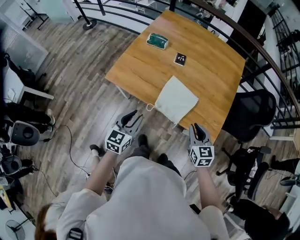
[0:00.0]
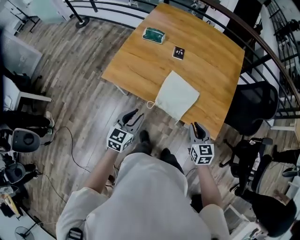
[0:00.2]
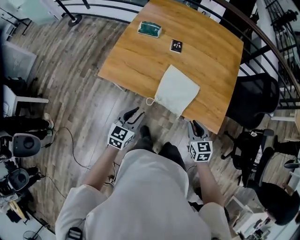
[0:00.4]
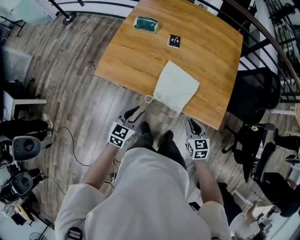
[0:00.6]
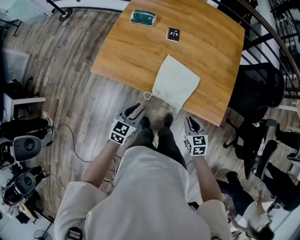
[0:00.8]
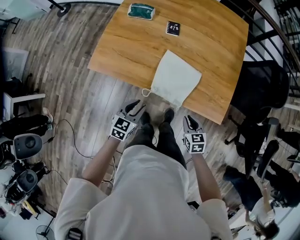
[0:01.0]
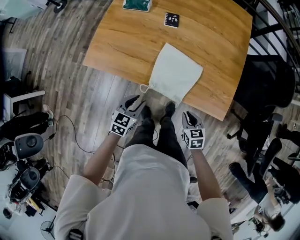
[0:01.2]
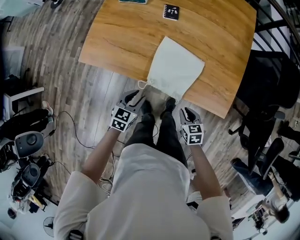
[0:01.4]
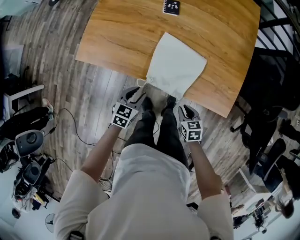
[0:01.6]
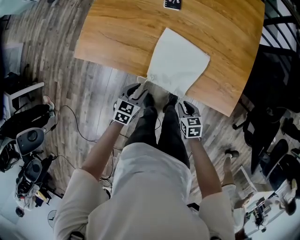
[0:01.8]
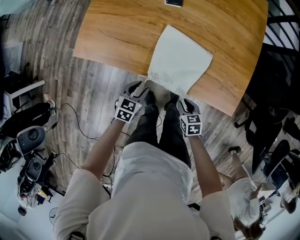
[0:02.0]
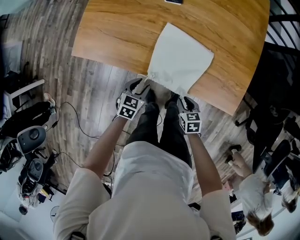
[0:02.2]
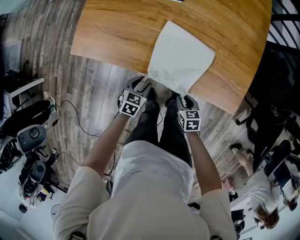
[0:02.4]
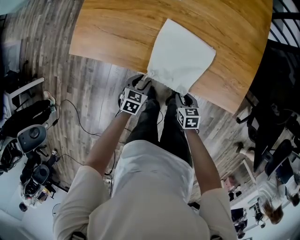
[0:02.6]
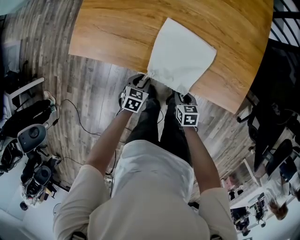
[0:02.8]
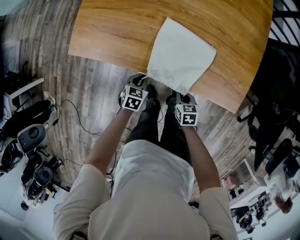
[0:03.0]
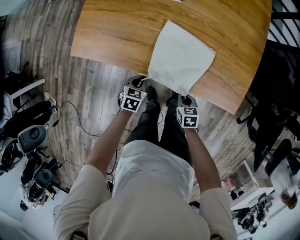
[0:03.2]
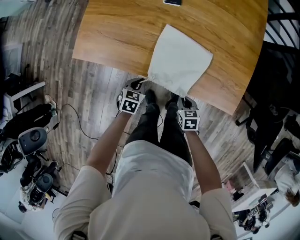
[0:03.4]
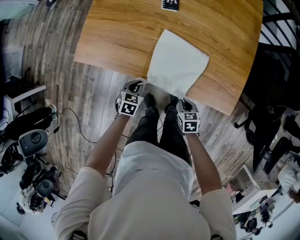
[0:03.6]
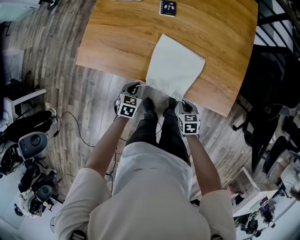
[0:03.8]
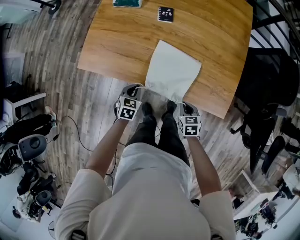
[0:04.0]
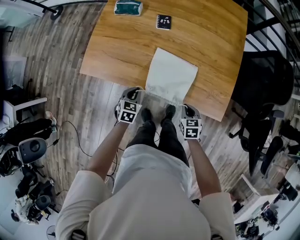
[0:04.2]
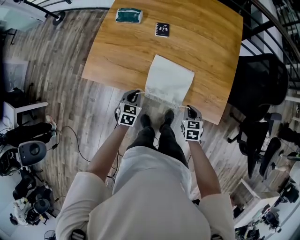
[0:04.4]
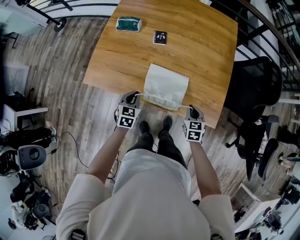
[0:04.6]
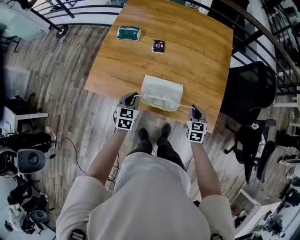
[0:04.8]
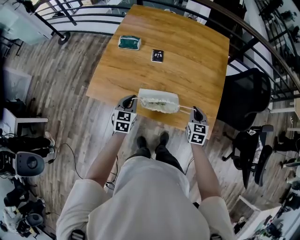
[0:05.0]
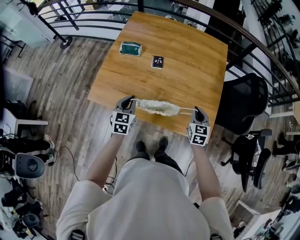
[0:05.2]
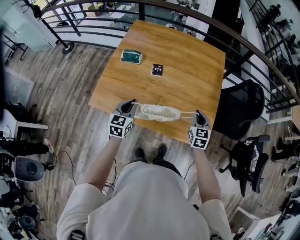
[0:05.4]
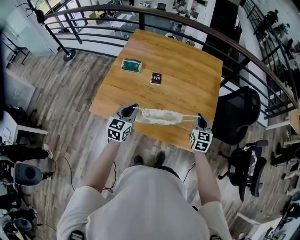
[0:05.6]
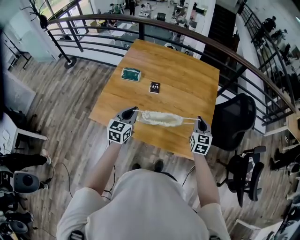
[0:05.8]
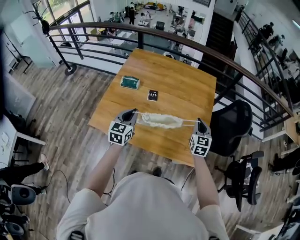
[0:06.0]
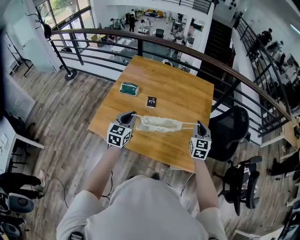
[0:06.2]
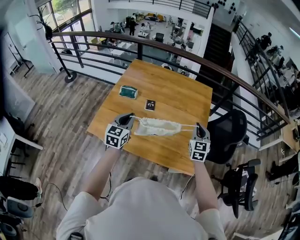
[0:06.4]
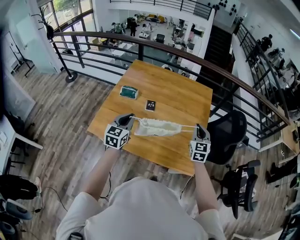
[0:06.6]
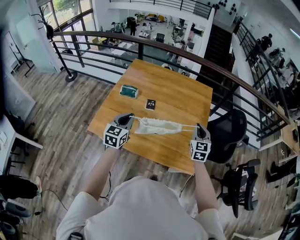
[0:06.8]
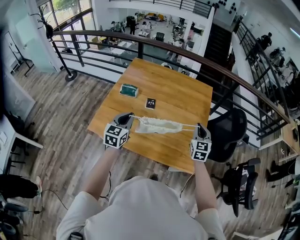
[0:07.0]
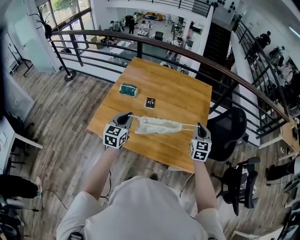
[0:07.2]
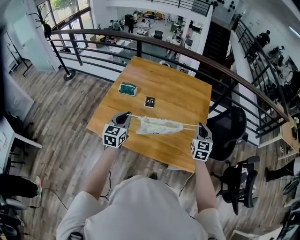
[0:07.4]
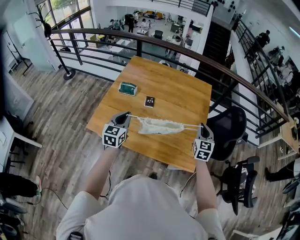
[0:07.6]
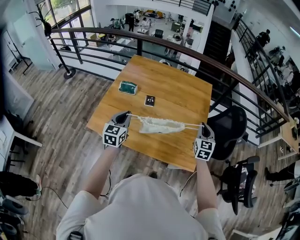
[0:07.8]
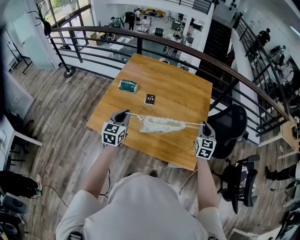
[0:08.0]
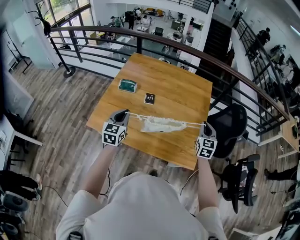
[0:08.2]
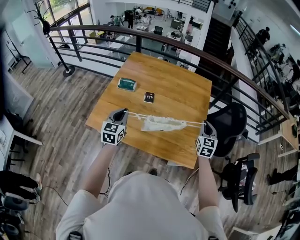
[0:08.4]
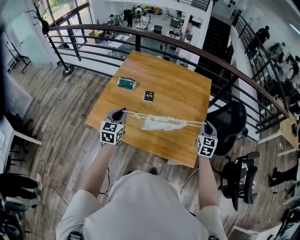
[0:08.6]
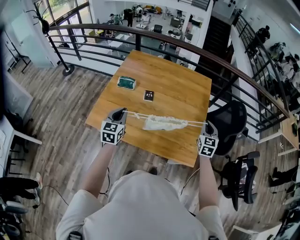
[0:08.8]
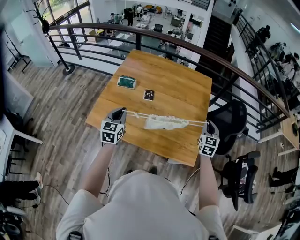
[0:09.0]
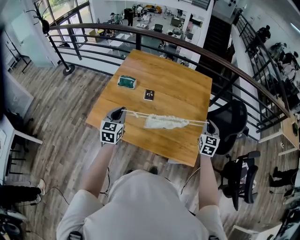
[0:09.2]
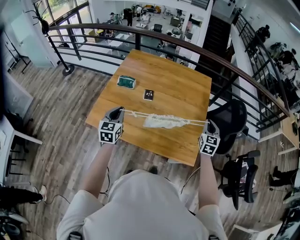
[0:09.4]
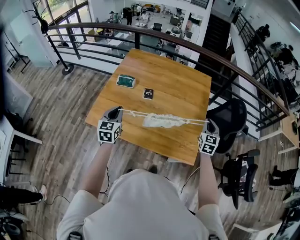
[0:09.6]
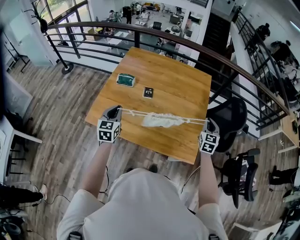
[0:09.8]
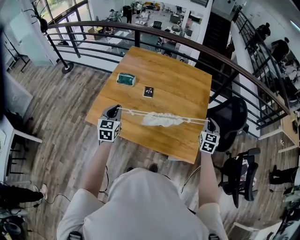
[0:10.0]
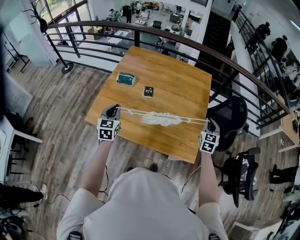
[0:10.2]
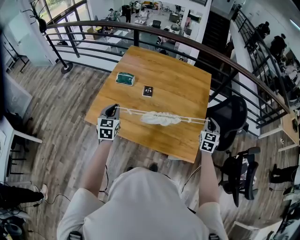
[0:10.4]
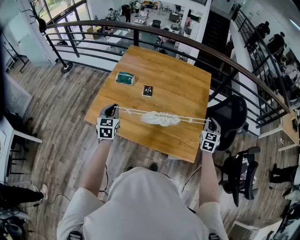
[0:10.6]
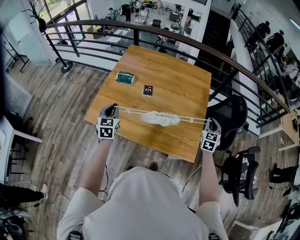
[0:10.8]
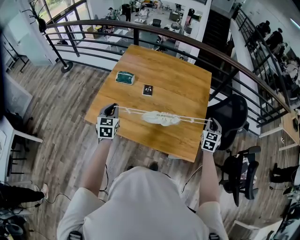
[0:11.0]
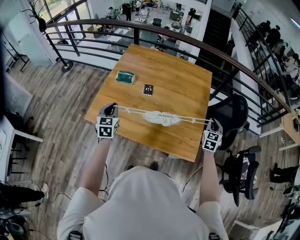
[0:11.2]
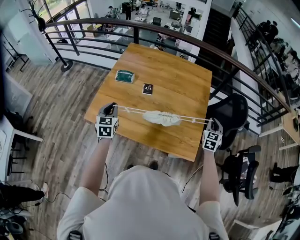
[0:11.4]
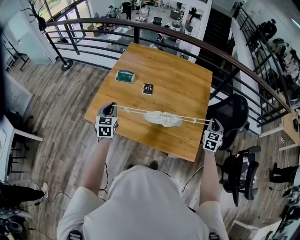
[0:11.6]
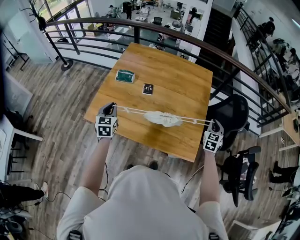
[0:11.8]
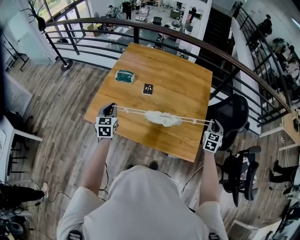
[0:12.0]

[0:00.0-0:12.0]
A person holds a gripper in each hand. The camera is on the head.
0:00.0 to 0:01.6: The two grippers go roughly 25 cm downward. The left gripper turns by roughly 30 degrees. Meanwhile the right gripper swivels approximately 30 degrees.
0:01.6 to 0:03.0: The two grippers go roughly 10 cm downward. The left gripper closes its fingers.
0:03.0 to 0:04.4: The right gripper heads upward and to the right, covering roughly 15 cm, while the left gripper is displaced upward by roughly 15 cm.
0:04.4 to 0:06.0: The left gripper moves upward, about 30 cm, and changes its angle by about 30 degrees. Meanwhile the right gripper heads upward and forward, covering roughly 30 cm, and tilts its fingers about 30 degrees upward.
0:06.0 to 0:07.6: The right gripper ends up approximately 5 cm from where it was.
0:07.6 to 0:09.0: The right gripper ends up about 5 cm from where it was.
0:09.0 to 0:10.4: The grippers stay close to where they were, moving slightly.
0:10.4 to 0:12.0: The right gripper changes place by some 5 cm.

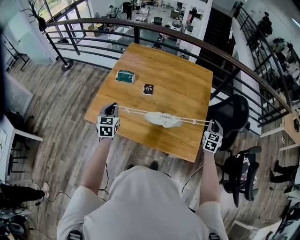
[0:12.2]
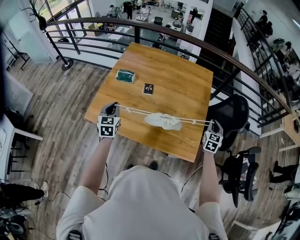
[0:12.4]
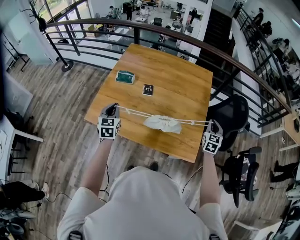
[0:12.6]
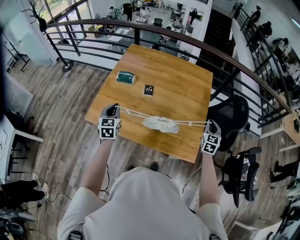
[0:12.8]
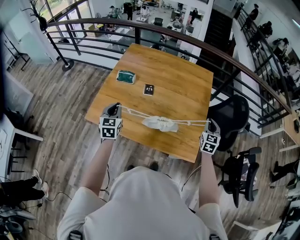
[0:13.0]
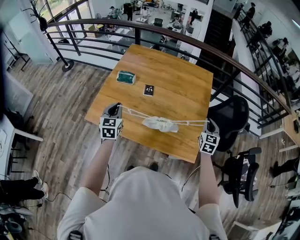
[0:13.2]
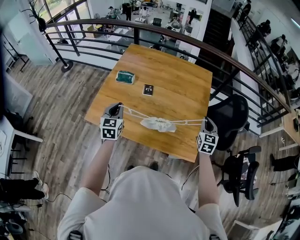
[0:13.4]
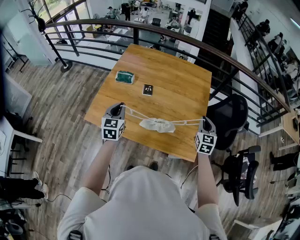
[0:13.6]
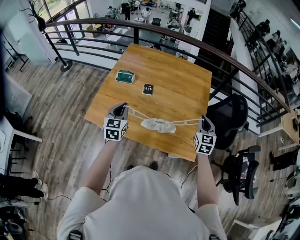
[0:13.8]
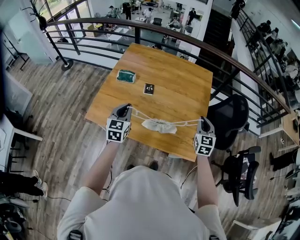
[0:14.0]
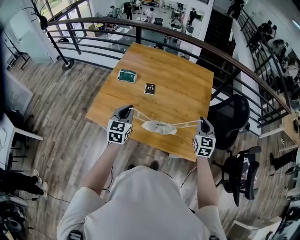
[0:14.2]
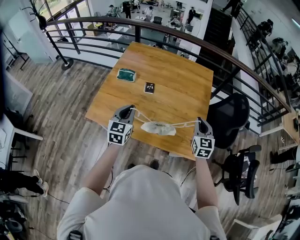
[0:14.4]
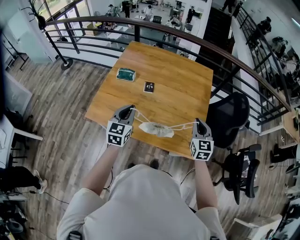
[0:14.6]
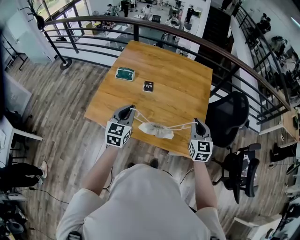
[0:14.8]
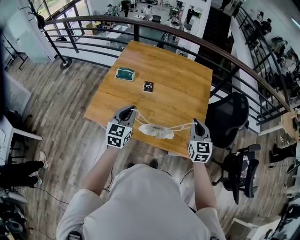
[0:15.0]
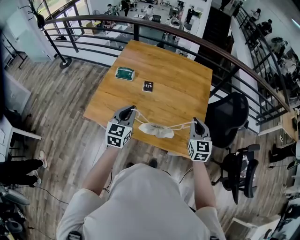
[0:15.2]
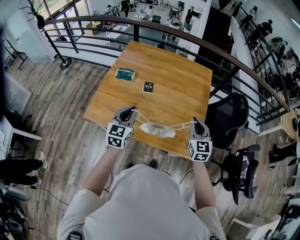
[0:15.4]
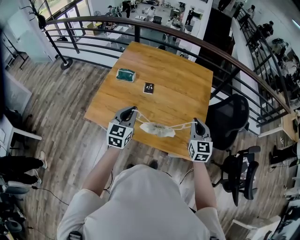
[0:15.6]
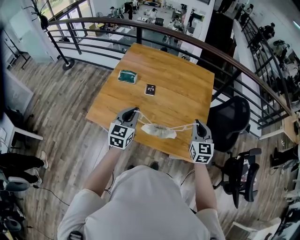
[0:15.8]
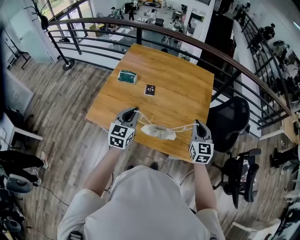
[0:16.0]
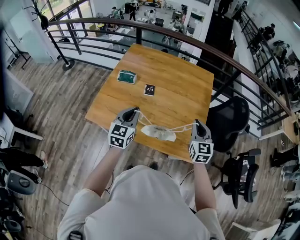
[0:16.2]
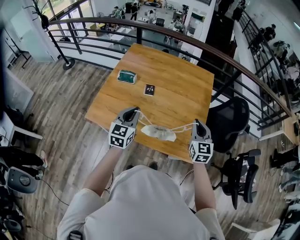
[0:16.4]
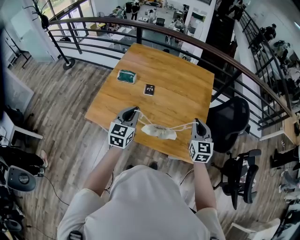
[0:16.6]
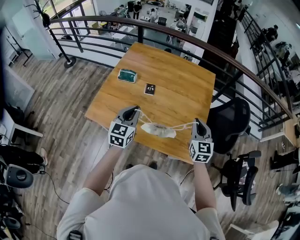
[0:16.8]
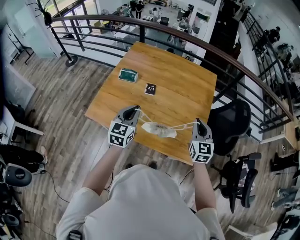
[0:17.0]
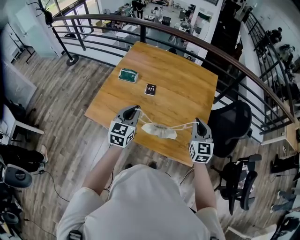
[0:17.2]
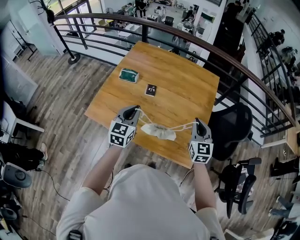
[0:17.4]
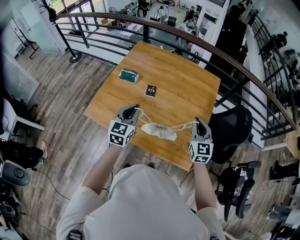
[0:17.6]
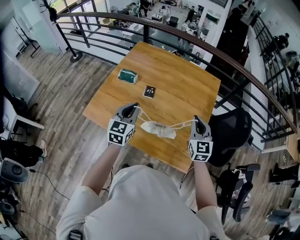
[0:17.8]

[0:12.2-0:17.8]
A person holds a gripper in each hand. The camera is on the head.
0:12.2 to 0:13.6: The left gripper moves some 5 cm. Meanwhile the right gripper is displaced to the left by about 10 cm.
0:13.6 to 0:15.0: The left gripper heads to the right, covering about 5 cm. Meanwhile the right gripper is displaced to the left and backward by some 10 cm.
0:15.0 to 0:16.4: The grippers move only a little.
0:16.4 to 0:17.8: Both grippers travel together forward, some 5 cm.

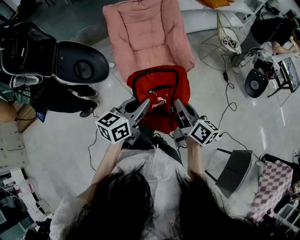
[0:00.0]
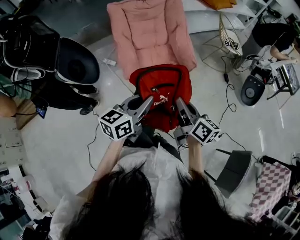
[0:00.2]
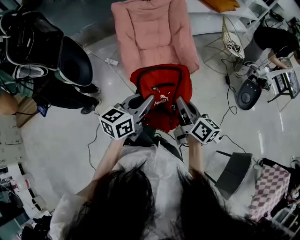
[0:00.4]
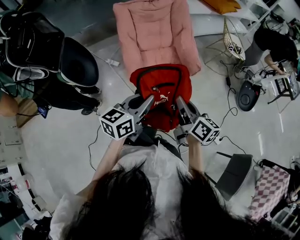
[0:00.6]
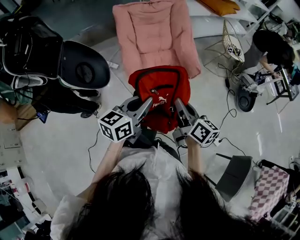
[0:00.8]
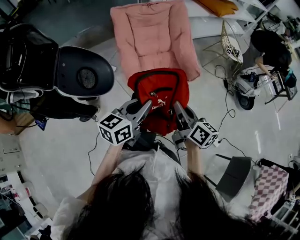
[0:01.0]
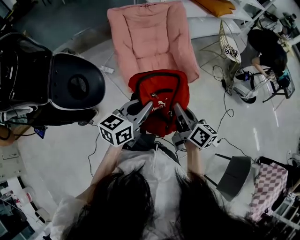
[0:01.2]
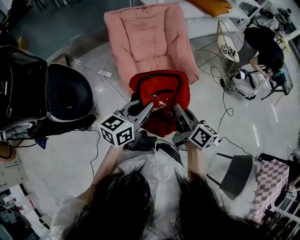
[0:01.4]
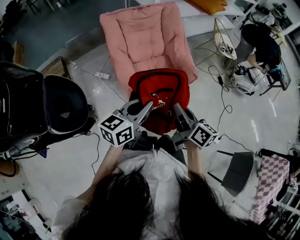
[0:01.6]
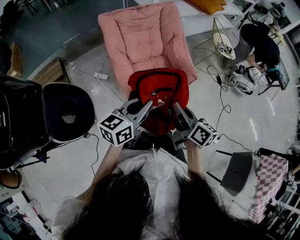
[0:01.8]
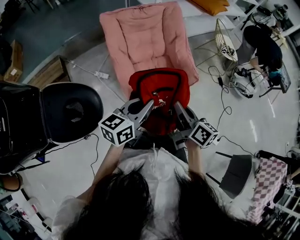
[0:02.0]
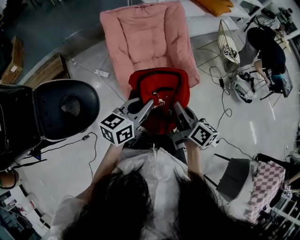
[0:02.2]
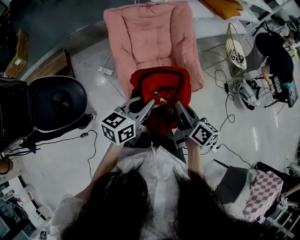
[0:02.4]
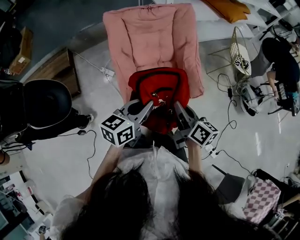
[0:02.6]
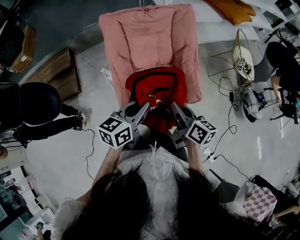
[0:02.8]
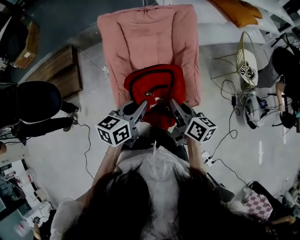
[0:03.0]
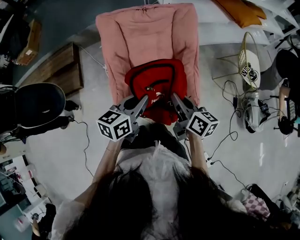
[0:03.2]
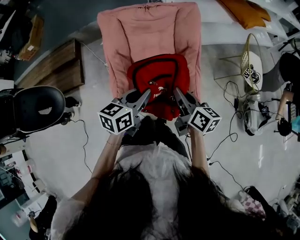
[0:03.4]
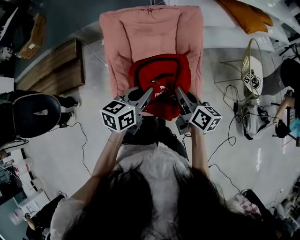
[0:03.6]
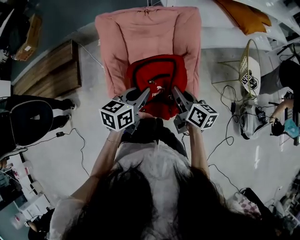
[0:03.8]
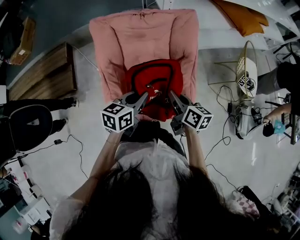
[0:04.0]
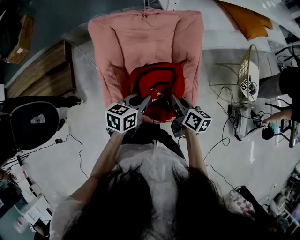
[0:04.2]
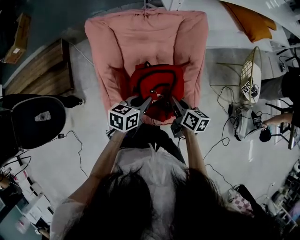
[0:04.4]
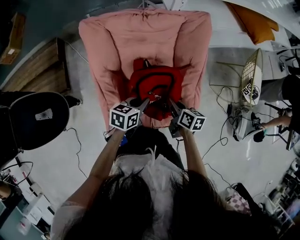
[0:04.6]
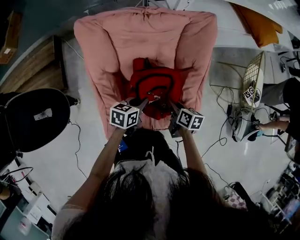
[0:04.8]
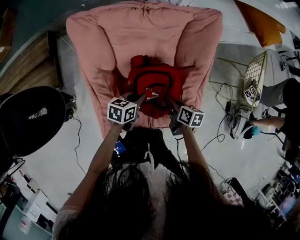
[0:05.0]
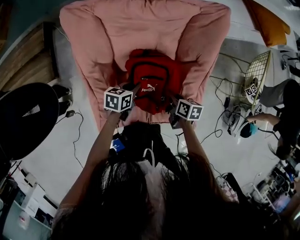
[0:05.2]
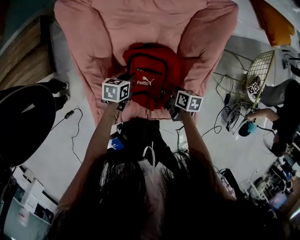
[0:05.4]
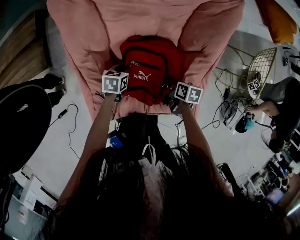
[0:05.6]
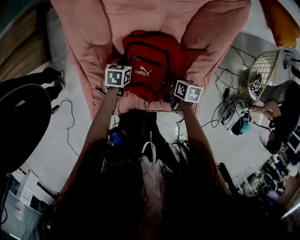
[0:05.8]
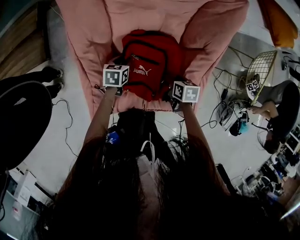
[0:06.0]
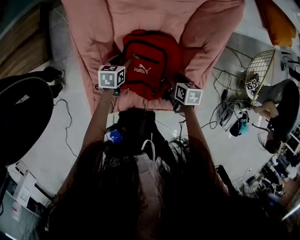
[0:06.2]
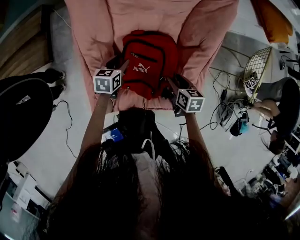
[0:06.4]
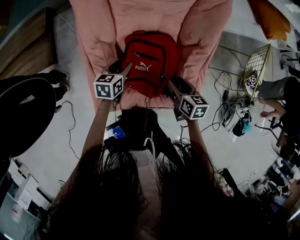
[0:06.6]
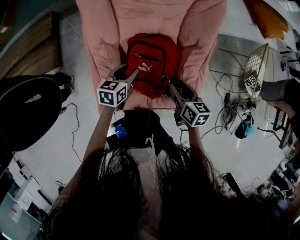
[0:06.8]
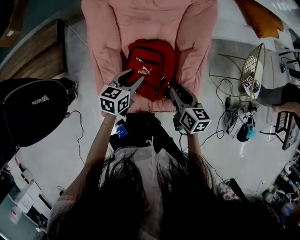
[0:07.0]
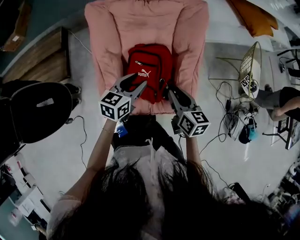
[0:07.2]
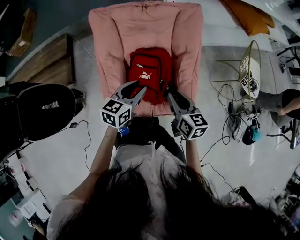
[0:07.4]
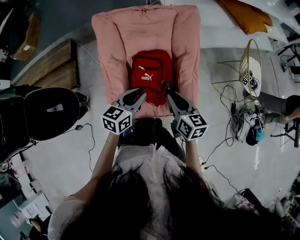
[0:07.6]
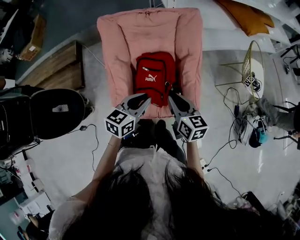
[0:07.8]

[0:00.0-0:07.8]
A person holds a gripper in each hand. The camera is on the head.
0:00.0 to 0:01.6: Both grippers move to the left and forward, roughly 15 cm.
0:01.6 to 0:03.2: Both grippers move forward, about 25 cm. The left gripper swivels approximately 20 degrees. The right gripper turns by roughly 20 degrees.
0:03.2 to 0:04.6: Both grippers travel together downward and forward, some 25 cm. The right gripper rotates about 20 degrees.
0:04.6 to 0:06.2: The left gripper goes some 25 cm downward, to the left and forward, and opens its fingers. Meanwhile the right gripper goes roughly 15 cm downward, changes its angle by some 30 degrees, and opens.
0:06.2 to 0:07.8: The two grippers go some 35 cm upward and backward. The right gripper tips its fingers upward by approximately 40 degrees, and closes. Meanwhile the left gripper turns by roughly 30 degrees, and closes.
